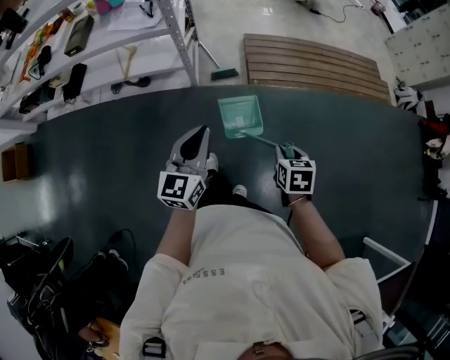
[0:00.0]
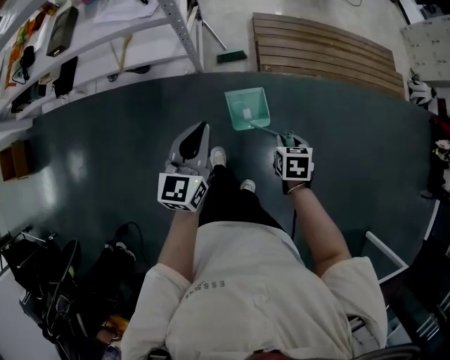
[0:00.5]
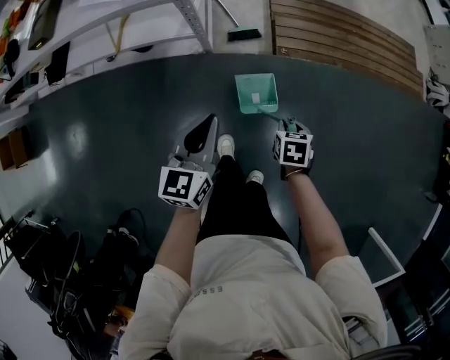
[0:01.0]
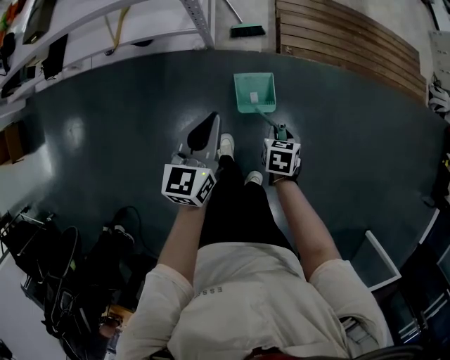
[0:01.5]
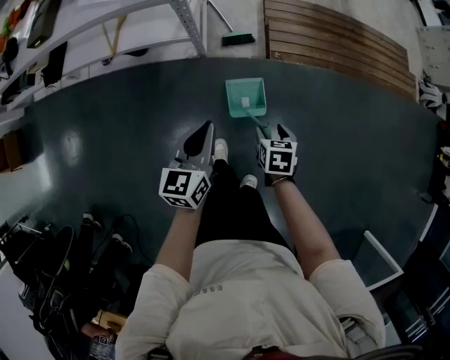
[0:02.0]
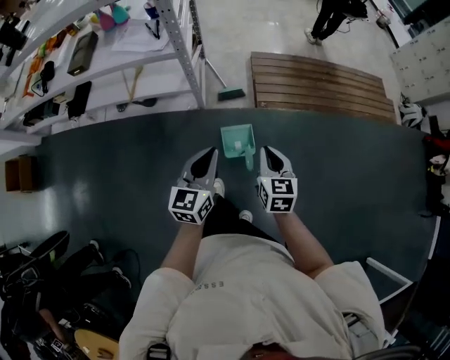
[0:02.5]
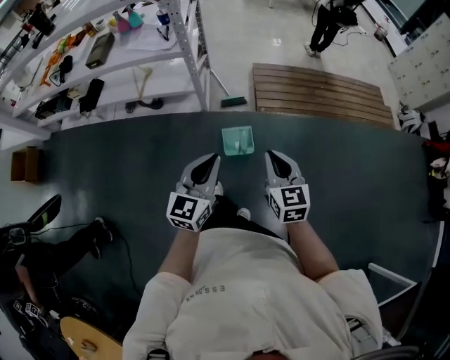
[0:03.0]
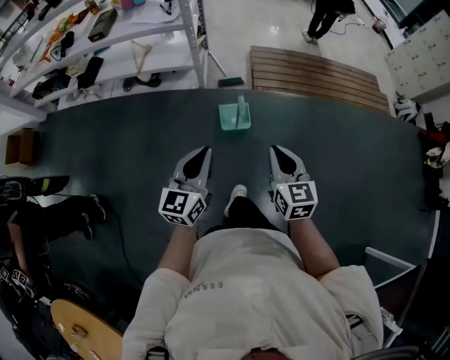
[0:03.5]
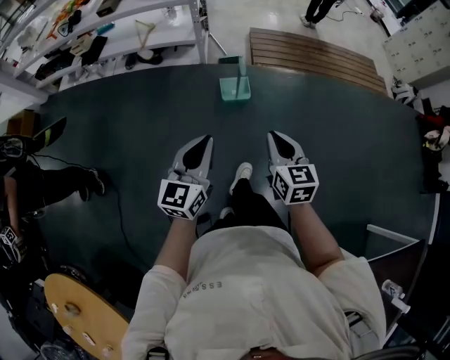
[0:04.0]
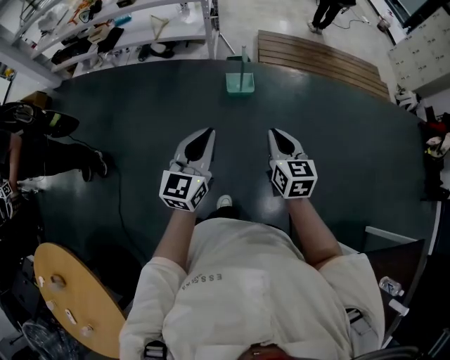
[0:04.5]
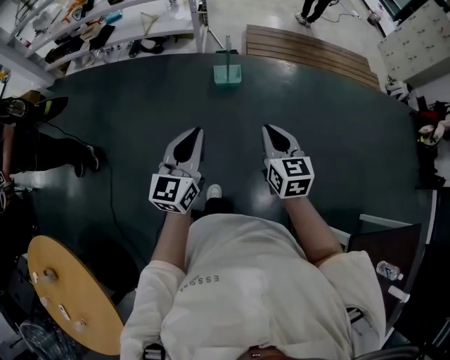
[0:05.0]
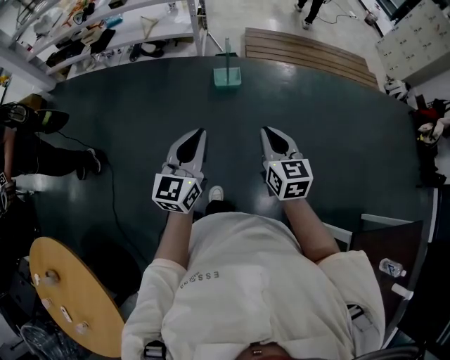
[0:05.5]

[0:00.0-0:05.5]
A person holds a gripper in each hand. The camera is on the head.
0:00.0 to 0:02.0: The right gripper travels downward, forward and to the left by some 30 cm, and opens up. Meanwhile the left gripper heads downward and forward, covering roughly 25 cm.
0:02.0 to 0:03.5: The right gripper moves upward and backward, about 40 cm, tilts its fingers about 40 degrees upward, and closes. The left gripper shifts approximately 40 cm backward and upward.
0:03.5 to 0:05.5: The grippers both shift backward by approximately 35 cm.

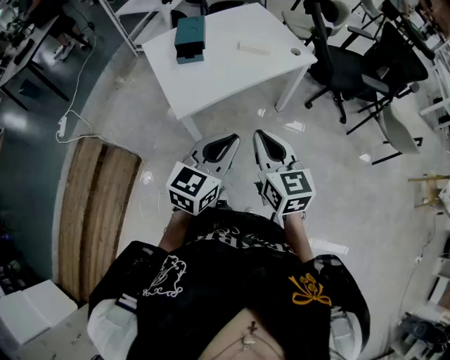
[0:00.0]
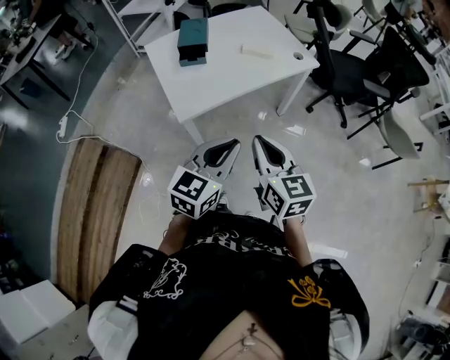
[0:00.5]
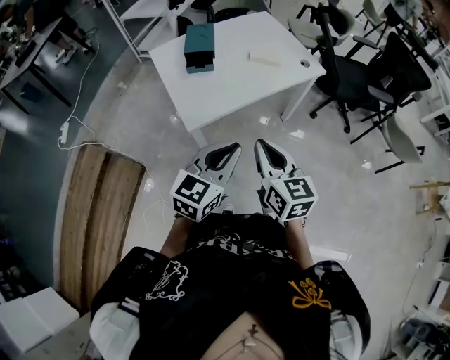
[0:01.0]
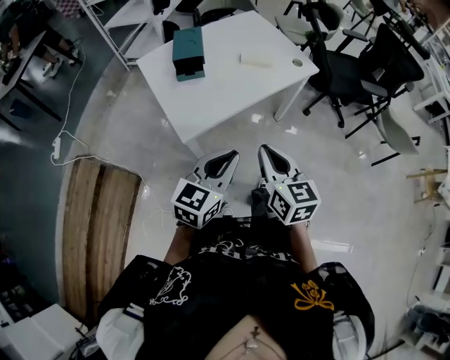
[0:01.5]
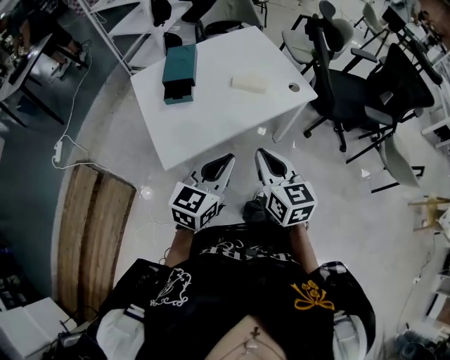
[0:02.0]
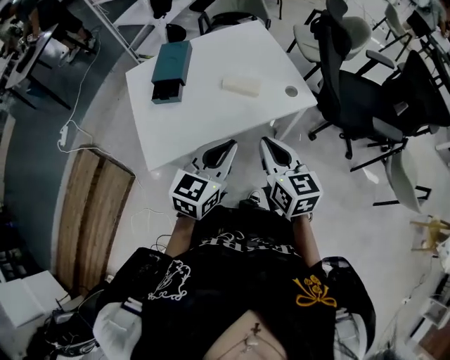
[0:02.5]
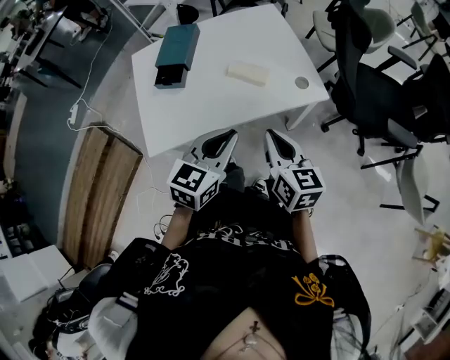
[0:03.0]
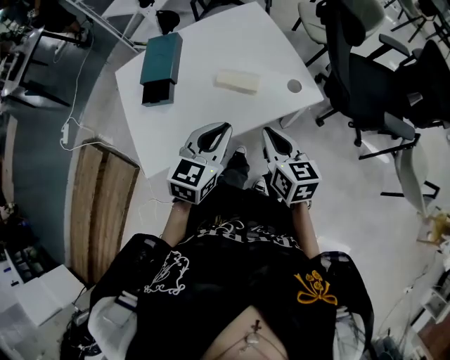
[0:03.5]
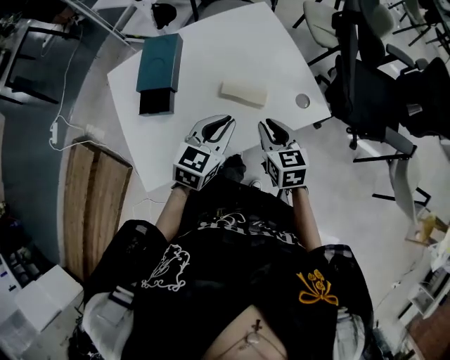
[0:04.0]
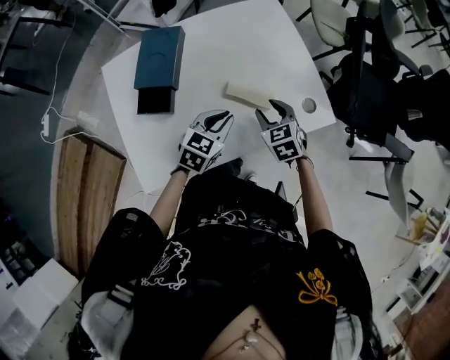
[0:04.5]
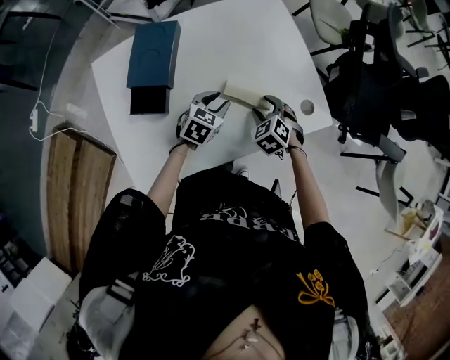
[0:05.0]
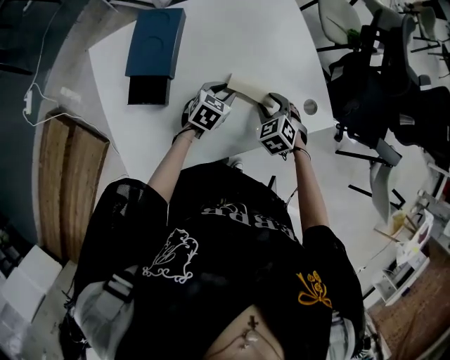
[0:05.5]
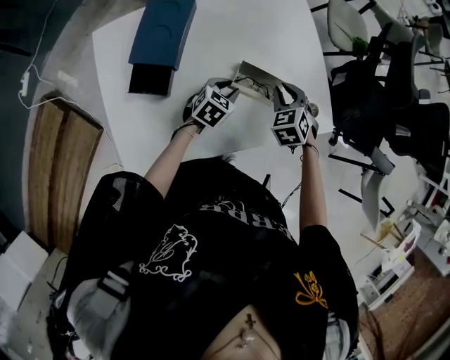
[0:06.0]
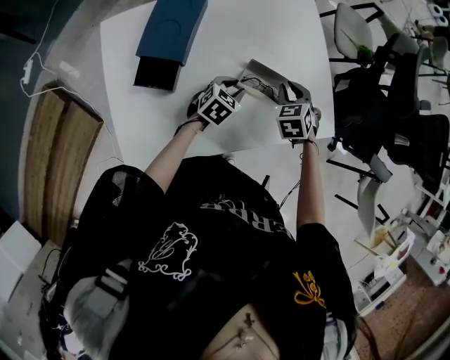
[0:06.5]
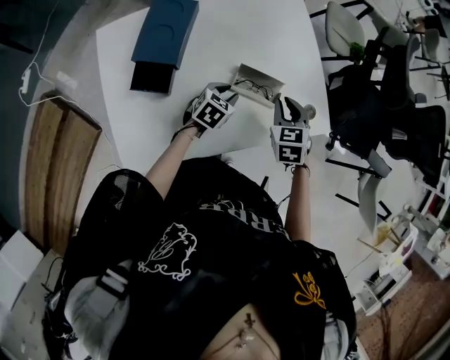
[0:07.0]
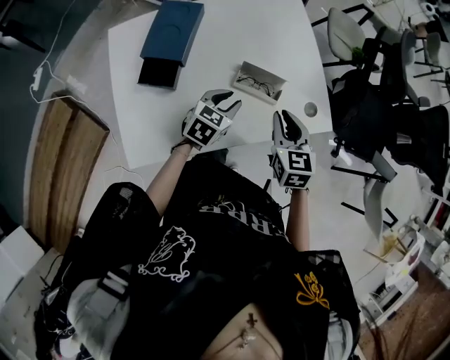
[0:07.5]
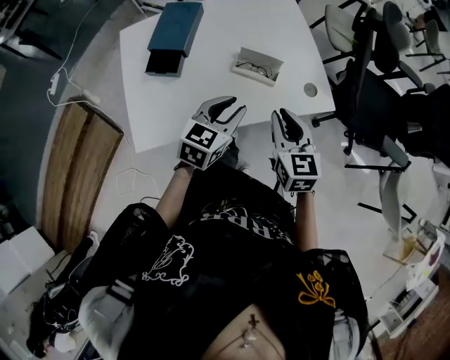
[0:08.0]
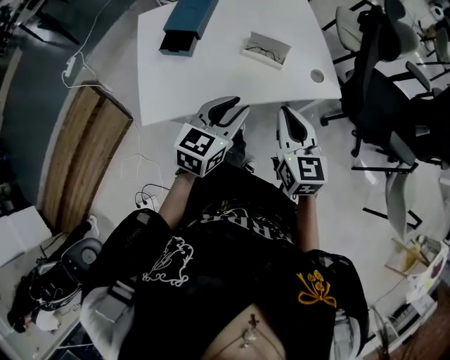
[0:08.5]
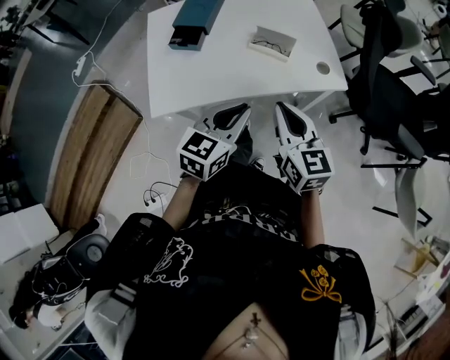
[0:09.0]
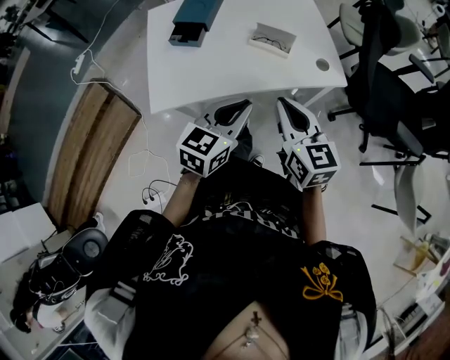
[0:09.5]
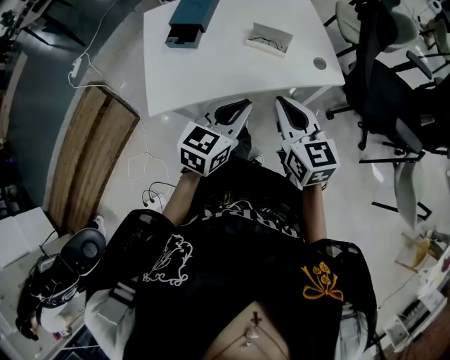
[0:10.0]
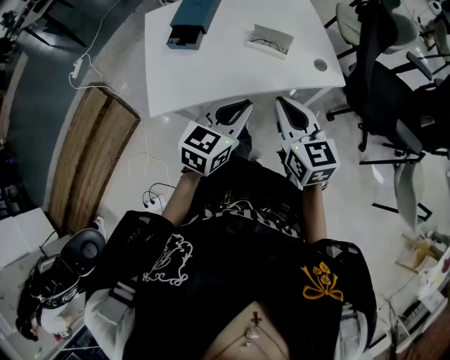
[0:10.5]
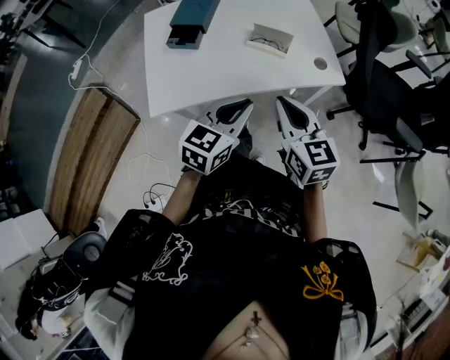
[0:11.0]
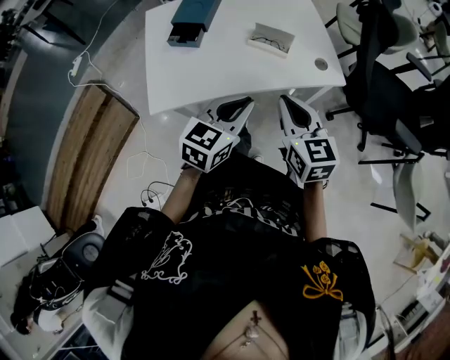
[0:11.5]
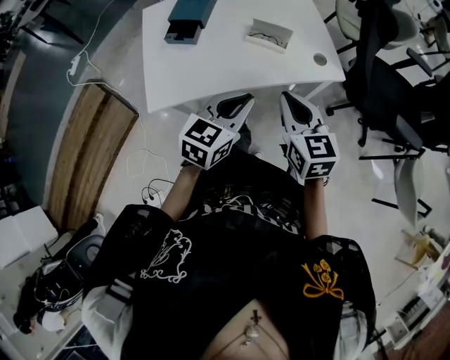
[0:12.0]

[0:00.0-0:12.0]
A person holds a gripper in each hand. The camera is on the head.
0:00.0 to 0:02.0: Both grippers travel together forward, approximately 20 cm.
0:02.0 to 0:04.0: The two grippers go about 30 cm forward.
0:04.0 to 0:06.0: The right gripper is displaced forward and downward by roughly 15 cm, swivels about 40 degrees, and opens, then closes again, while the left gripper shifts roughly 25 cm downward and forward, turns by approximately 20 degrees, and opens up.
0:06.0 to 0:08.0: The left gripper heads upward, backward and to the right, covering about 25 cm, and turns by approximately 20 degrees. The right gripper is displaced backward and upward by roughly 25 cm, and swivels approximately 40 degrees.
0:08.0 to 0:10.0: The two grippers go roughly 15 cm backward. The left gripper closes.
0:10.0 to 0:12.0: The grippers stay close to where they were, moving slightly.

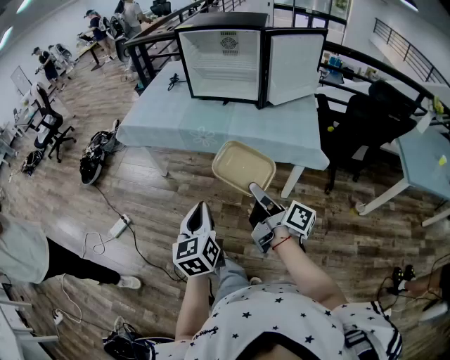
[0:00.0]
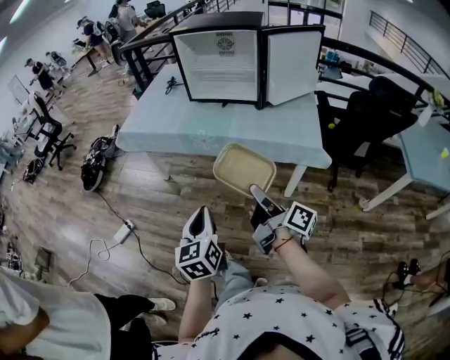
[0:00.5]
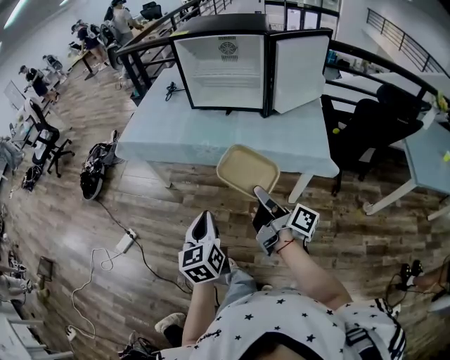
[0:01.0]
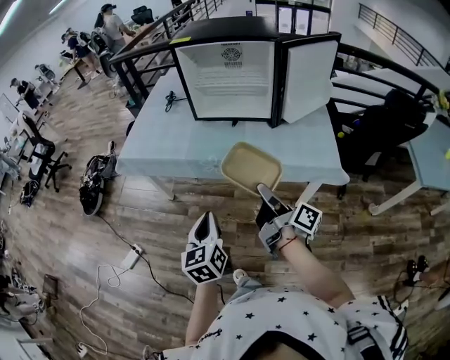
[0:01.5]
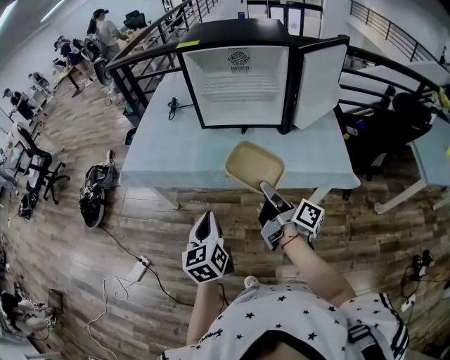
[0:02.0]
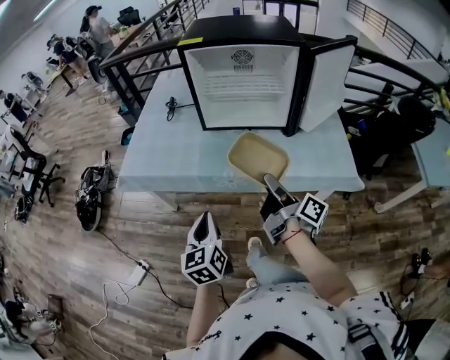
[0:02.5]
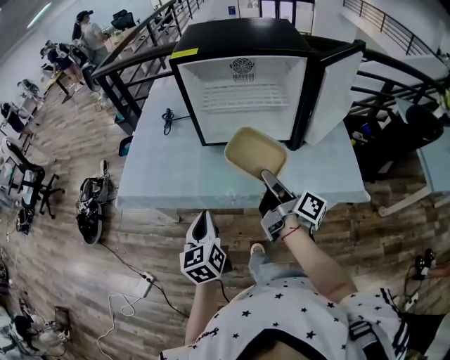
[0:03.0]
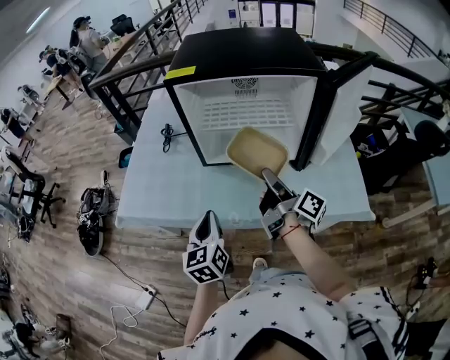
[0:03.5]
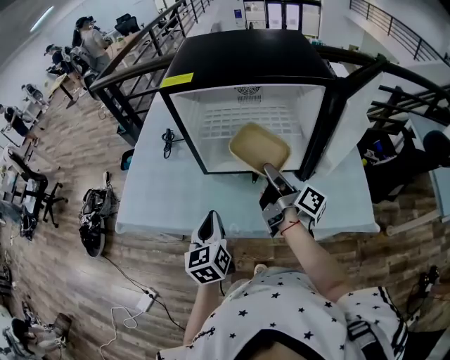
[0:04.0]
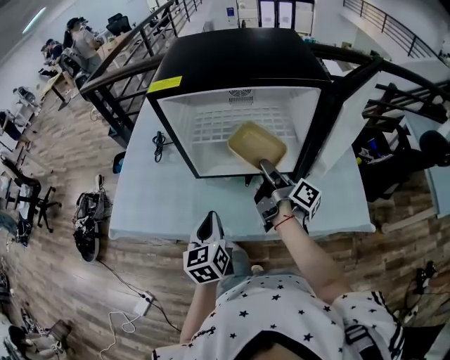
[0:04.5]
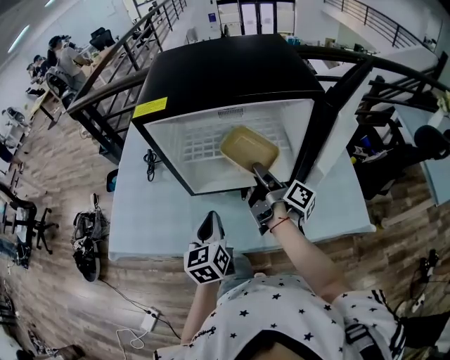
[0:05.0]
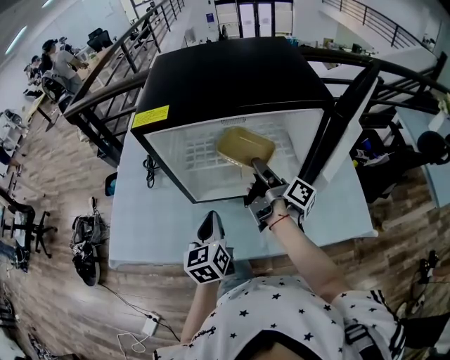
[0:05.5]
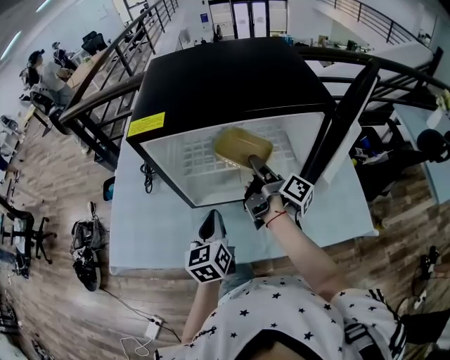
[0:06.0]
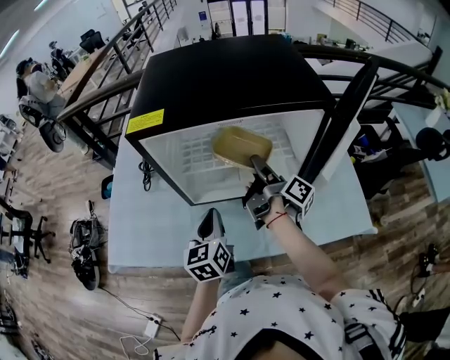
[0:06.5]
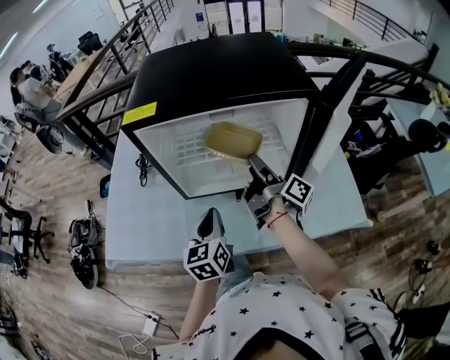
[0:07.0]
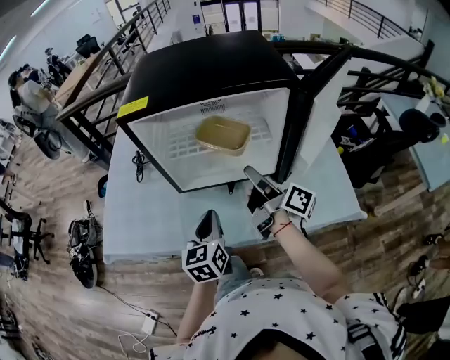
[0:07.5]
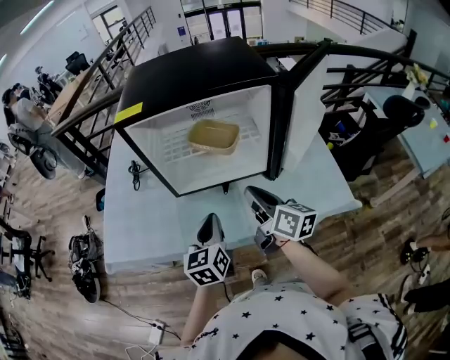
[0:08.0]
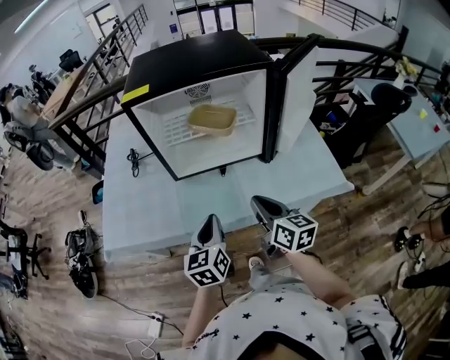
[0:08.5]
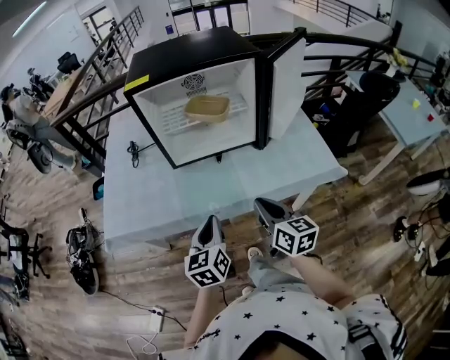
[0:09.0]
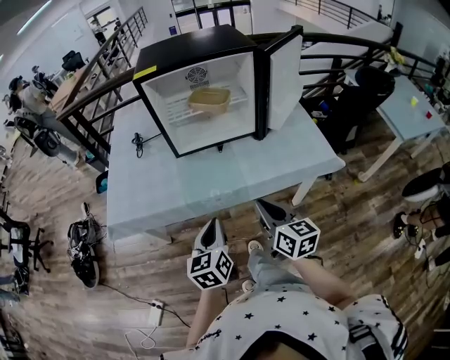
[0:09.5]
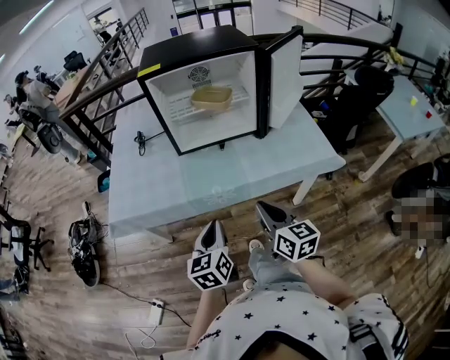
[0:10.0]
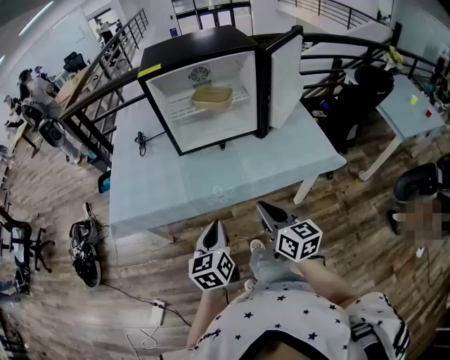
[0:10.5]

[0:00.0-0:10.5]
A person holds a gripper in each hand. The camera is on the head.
0:00.0 to 0:02.0: Both grippers move forward, about 25 cm.
0:02.0 to 0:04.0: Both grippers travel together forward, roughly 30 cm.
0:04.0 to 0:06.5: Both grippers move forward, about 15 cm.
0:06.5 to 0:08.5: The left gripper moves backward, some 15 cm; the right gripper is displaced backward by approximately 25 cm, rotates around the line of its fingers by about 60 degrees, counterclockwise from behind, and closes its fingers.
0:08.5 to 0:10.5: The two grippers go some 15 cm backward.
